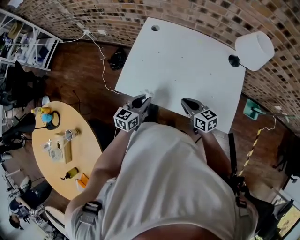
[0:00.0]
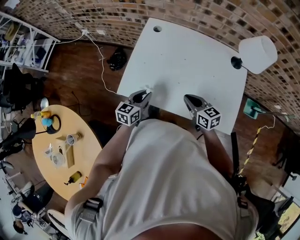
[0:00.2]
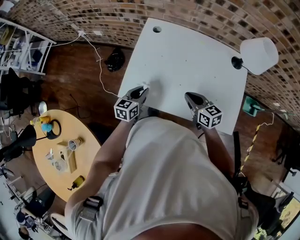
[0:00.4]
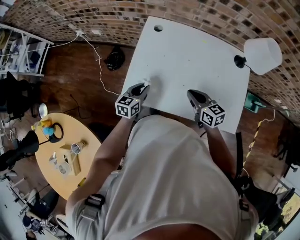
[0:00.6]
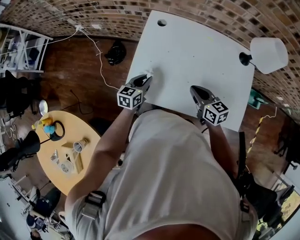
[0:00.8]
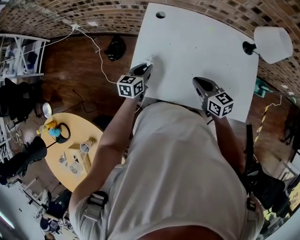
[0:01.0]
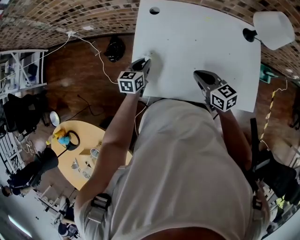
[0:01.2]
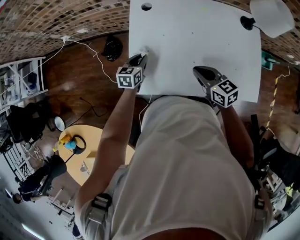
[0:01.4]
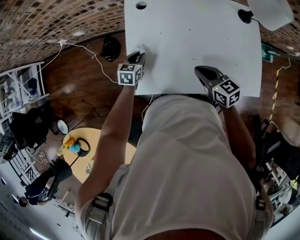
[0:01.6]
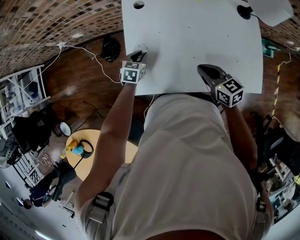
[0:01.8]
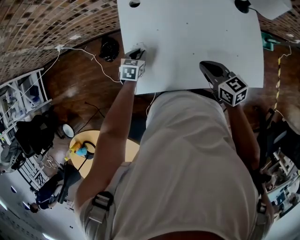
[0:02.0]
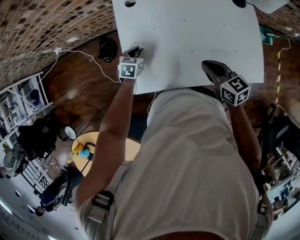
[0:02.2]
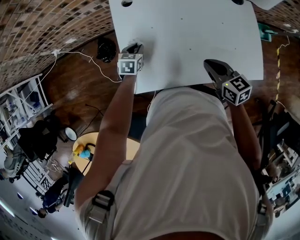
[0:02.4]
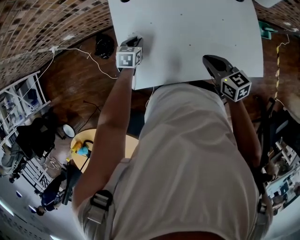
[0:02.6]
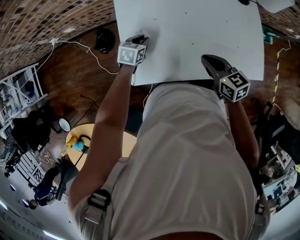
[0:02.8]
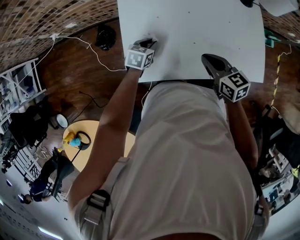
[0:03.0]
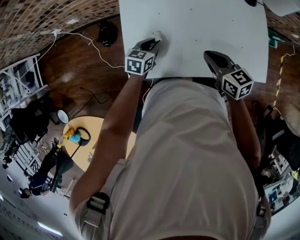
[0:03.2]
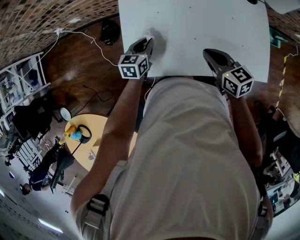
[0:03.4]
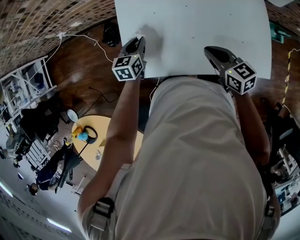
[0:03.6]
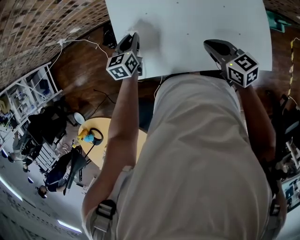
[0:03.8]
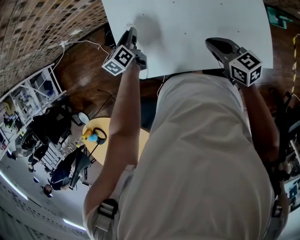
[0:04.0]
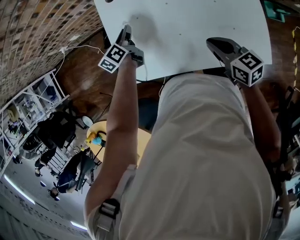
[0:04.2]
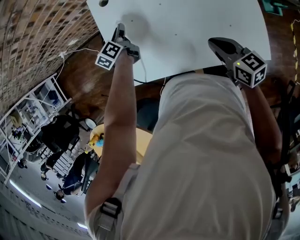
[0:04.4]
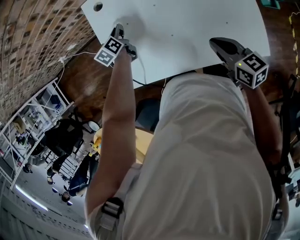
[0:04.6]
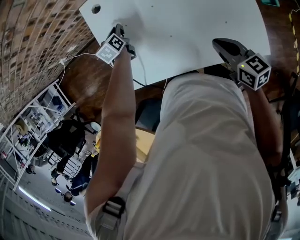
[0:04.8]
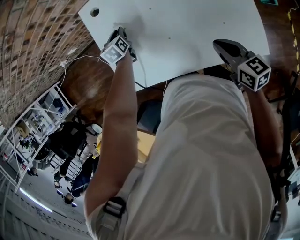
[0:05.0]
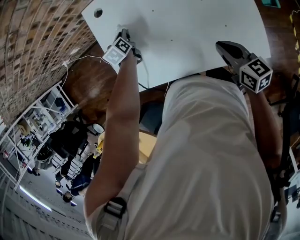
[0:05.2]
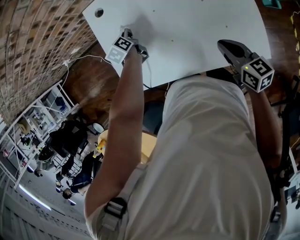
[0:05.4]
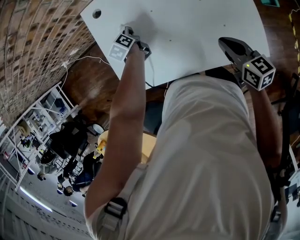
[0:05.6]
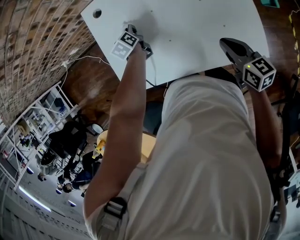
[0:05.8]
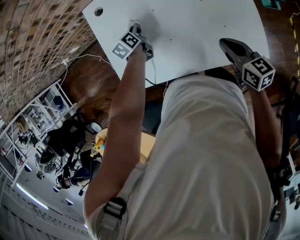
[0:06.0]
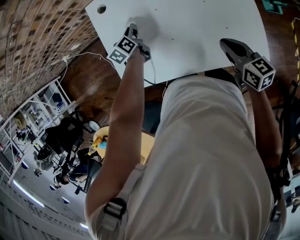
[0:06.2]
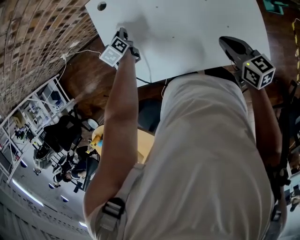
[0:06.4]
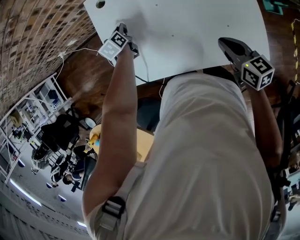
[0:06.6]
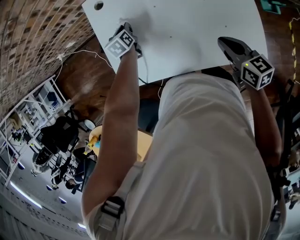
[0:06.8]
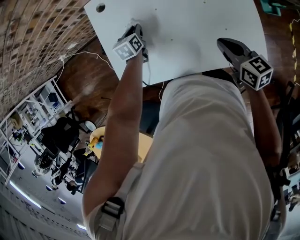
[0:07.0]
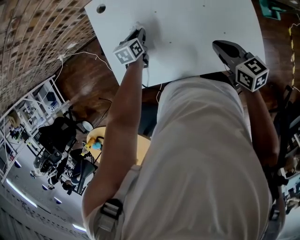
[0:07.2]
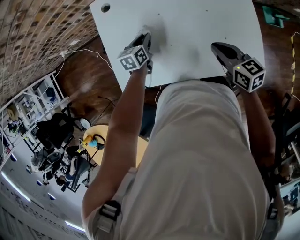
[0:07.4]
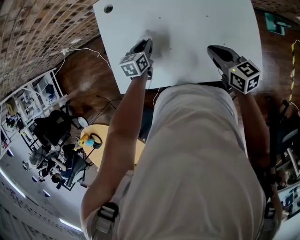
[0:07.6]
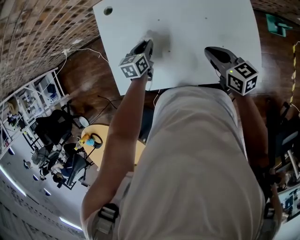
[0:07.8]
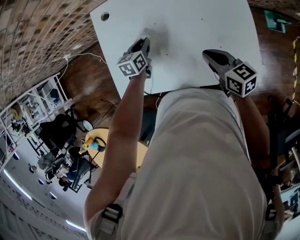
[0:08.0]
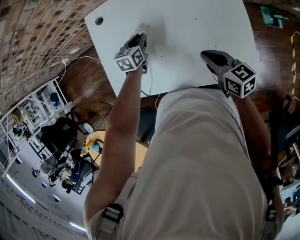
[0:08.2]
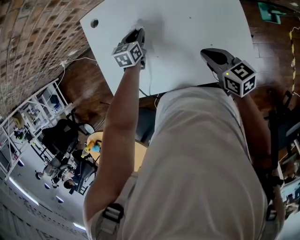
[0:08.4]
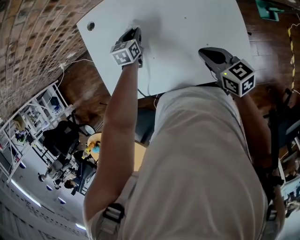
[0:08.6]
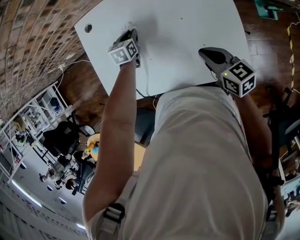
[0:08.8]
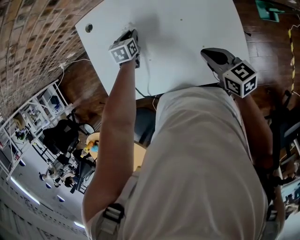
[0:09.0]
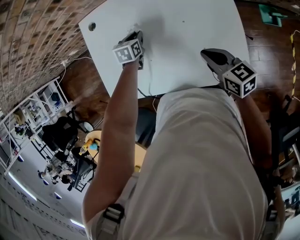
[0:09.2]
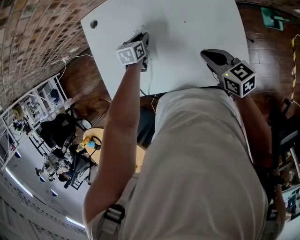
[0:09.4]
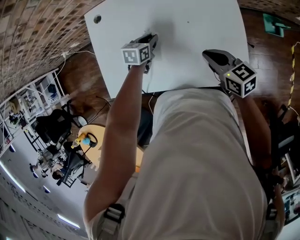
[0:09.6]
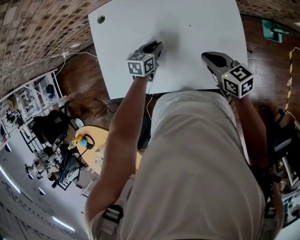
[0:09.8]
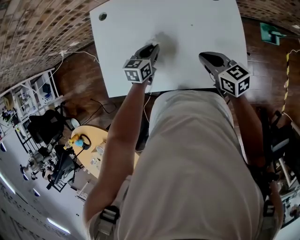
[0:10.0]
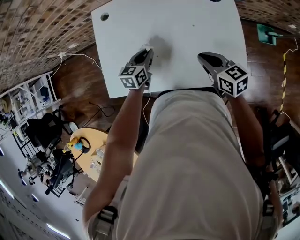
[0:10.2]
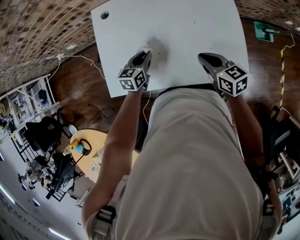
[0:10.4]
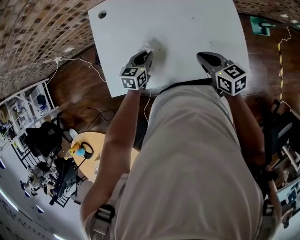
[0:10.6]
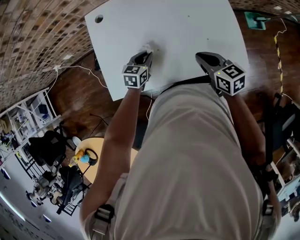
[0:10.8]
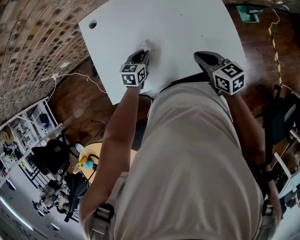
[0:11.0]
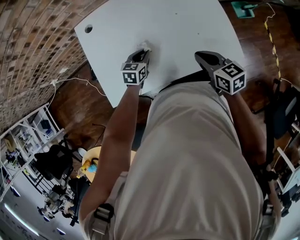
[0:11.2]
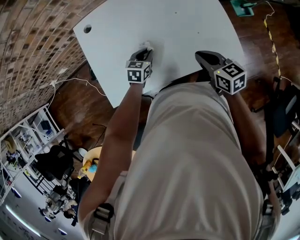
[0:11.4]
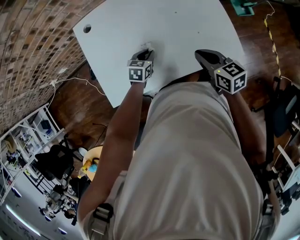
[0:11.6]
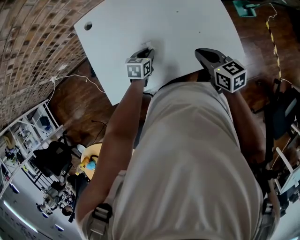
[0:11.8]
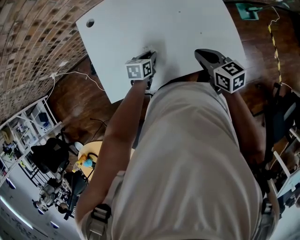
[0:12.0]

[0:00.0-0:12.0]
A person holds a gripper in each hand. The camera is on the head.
0:00.0 to 0:01.6: The left gripper moves forward and downward, some 25 cm, and changes its angle by approximately 30 degrees. Meanwhile the right gripper shifts about 10 cm forward and to the left.
0:01.6 to 0:03.0: The left gripper heads to the right, covering roughly 5 cm.
0:03.0 to 0:04.4: The right gripper is displaced to the right by about 10 cm. The left gripper heads forward and upward, covering some 15 cm, and rotates roughly 50 degrees.
0:04.4 to 0:06.0: The left gripper shifts about 10 cm to the right and downward; the right gripper goes roughly 5 cm to the right.
0:06.0 to 0:07.6: The left gripper heads backward, covering some 5 cm, and moves approximately 10 cm to the left and comes back.
0:07.6 to 0:09.0: The right gripper travels to the right by roughly 10 cm. The left gripper moves to the right and forward, approximately 10 cm.
0:09.0 to 0:10.4: The right gripper travels to the left by roughly 10 cm. Meanwhile the left gripper heads backward, covering about 15 cm, and changes its angle by some 20 degrees.
0:10.4 to 0:12.0: The left gripper travels downward by approximately 5 cm, and changes its angle by approximately 20 degrees.

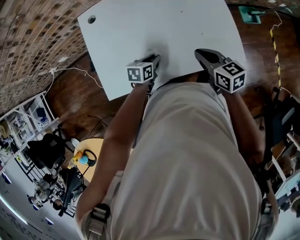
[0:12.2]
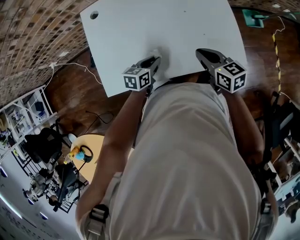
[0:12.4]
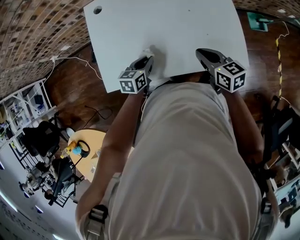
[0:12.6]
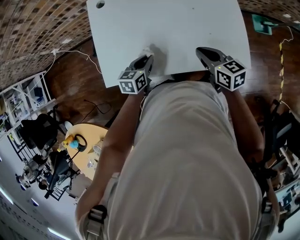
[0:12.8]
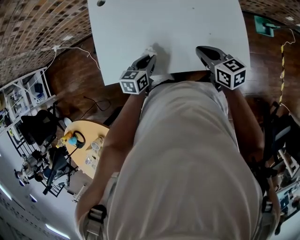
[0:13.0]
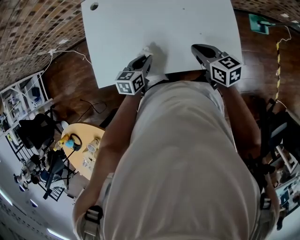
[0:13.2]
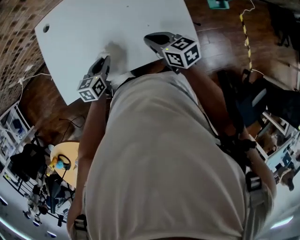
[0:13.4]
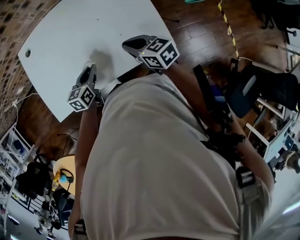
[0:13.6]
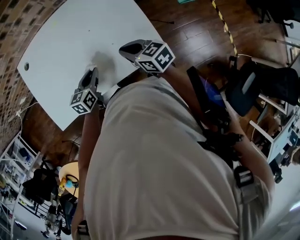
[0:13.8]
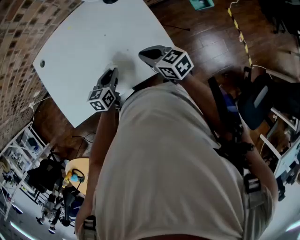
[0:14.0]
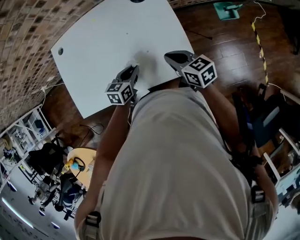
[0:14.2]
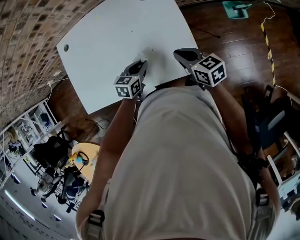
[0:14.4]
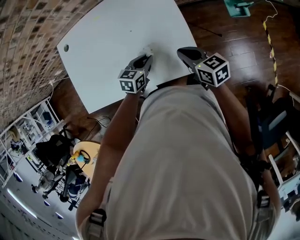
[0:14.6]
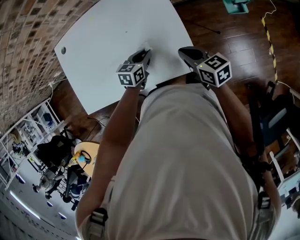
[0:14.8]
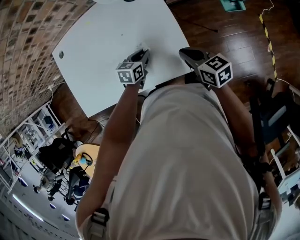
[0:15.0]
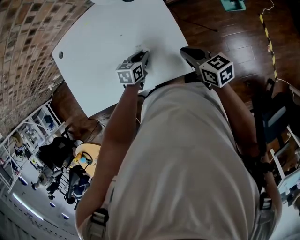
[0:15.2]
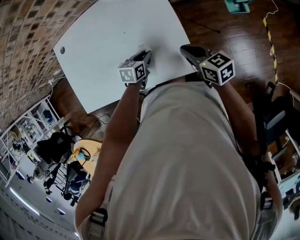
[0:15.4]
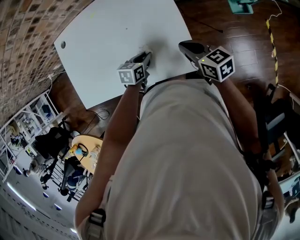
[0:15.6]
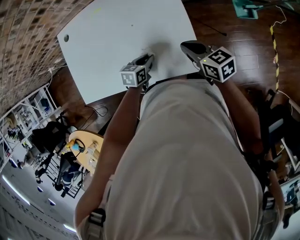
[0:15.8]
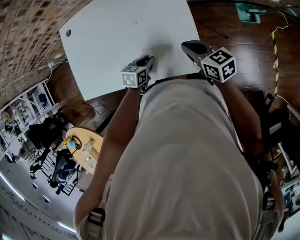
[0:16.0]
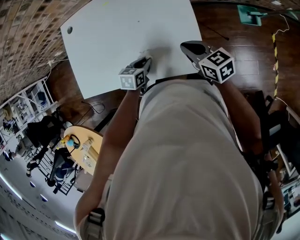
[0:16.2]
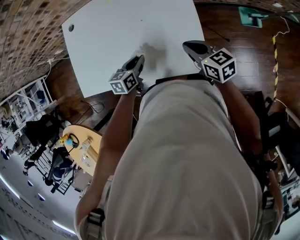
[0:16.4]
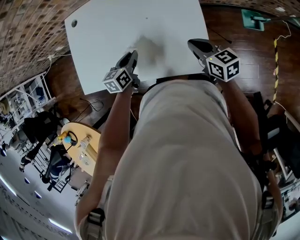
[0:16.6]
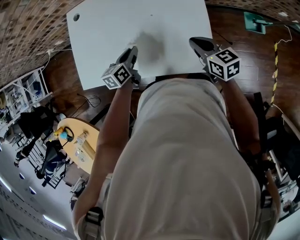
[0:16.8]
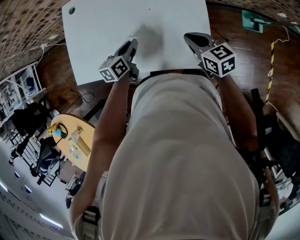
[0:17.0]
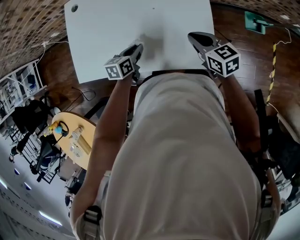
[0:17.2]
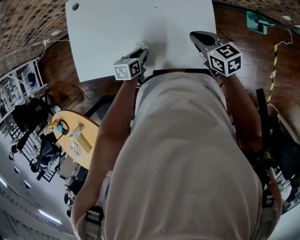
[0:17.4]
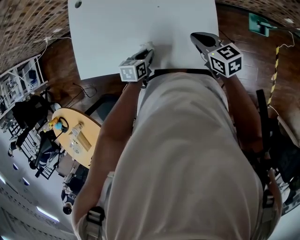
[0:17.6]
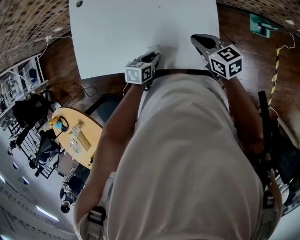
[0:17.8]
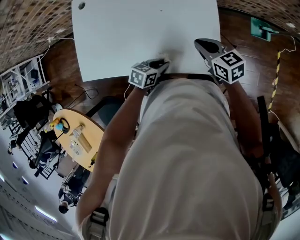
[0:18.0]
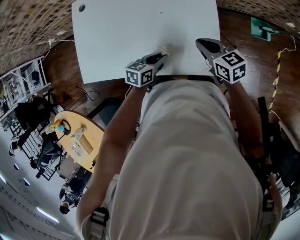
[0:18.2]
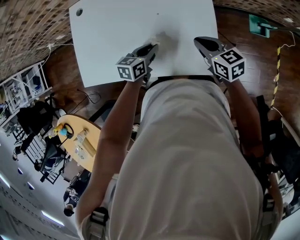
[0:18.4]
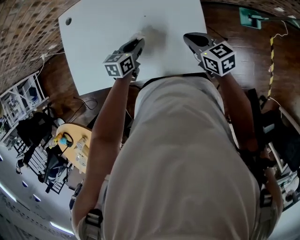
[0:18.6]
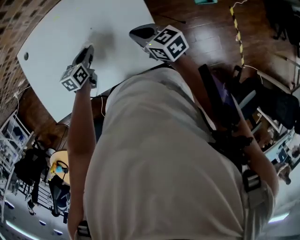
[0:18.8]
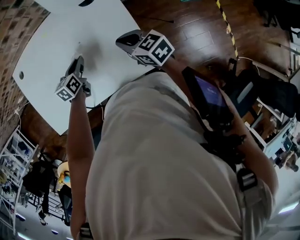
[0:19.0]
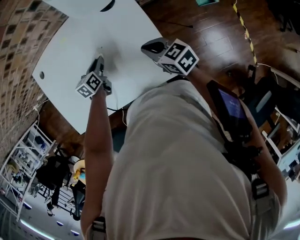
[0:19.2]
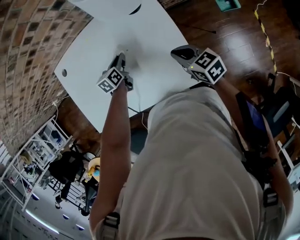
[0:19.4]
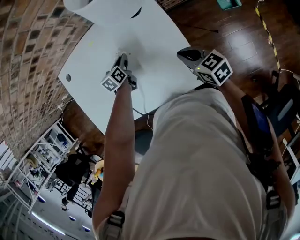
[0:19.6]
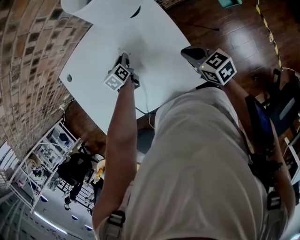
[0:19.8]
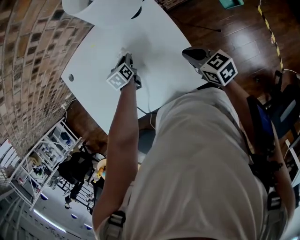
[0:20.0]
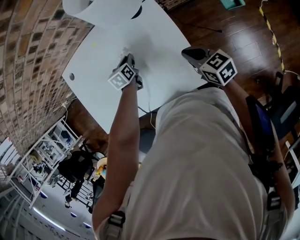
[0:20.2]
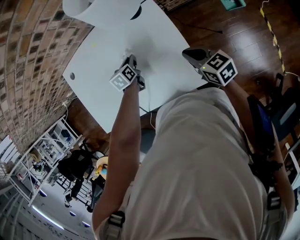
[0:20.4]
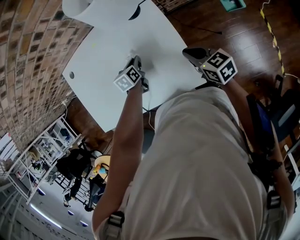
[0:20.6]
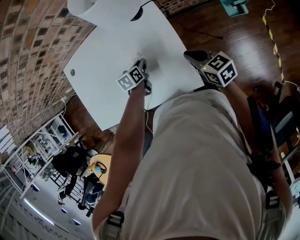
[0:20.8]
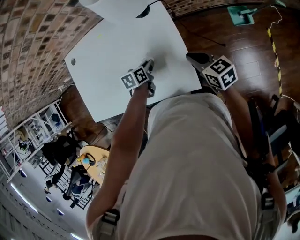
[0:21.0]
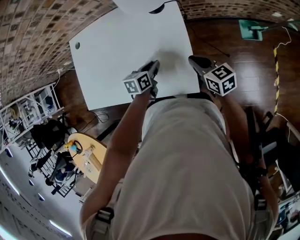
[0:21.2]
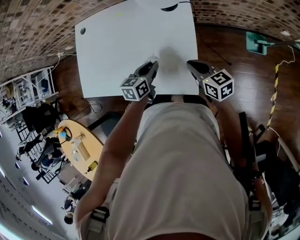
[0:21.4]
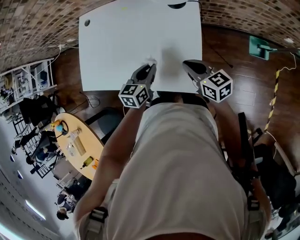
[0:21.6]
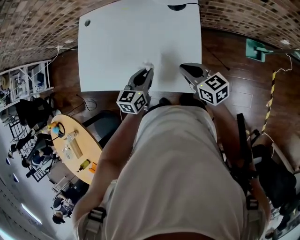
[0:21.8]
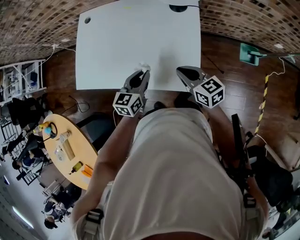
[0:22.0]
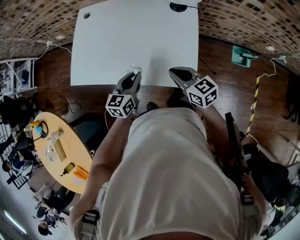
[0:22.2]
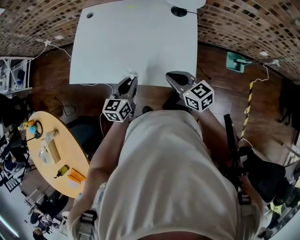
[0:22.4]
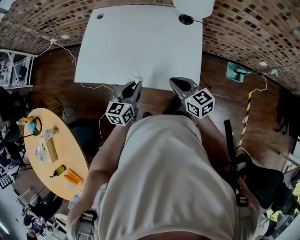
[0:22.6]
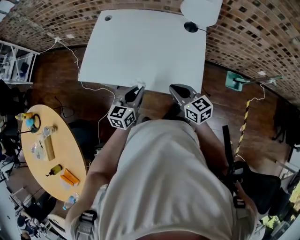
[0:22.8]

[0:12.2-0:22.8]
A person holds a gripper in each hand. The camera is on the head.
0:12.2 to 0:13.8: The right gripper heads to the right, covering roughly 10 cm. The left gripper heads to the right and upward, covering about 15 cm.
0:13.8 to 0:15.2: Both grippers travel together to the right, roughly 15 cm.
0:15.2 to 0:16.8: The right gripper moves to the left, approximately 10 cm. The left gripper shifts roughly 15 cm to the left, and swivels approximately 40 degrees.
0:16.8 to 0:18.2: The left gripper moves to the right and backward, approximately 10 cm, and changes its angle by approximately 30 degrees.
0:18.2 to 0:19.8: The left gripper moves forward, approximately 25 cm, and changes its angle by roughly 20 degrees. The right gripper goes some 5 cm to the right.
0:19.8 to 0:21.2: The left gripper shifts roughly 20 cm backward and to the right.
0:21.2 to 0:22.8: The left gripper shifts approximately 30 cm to the left, backward and upward, and turns by about 30 degrees; the right gripper is displaced to the left and backward by roughly 25 cm.

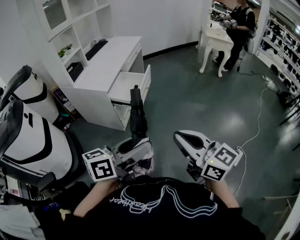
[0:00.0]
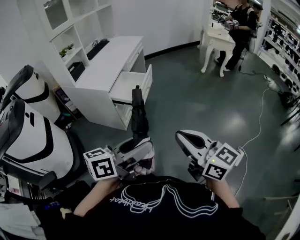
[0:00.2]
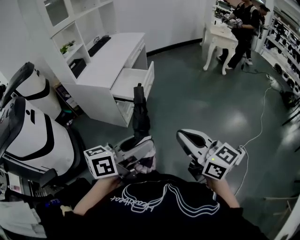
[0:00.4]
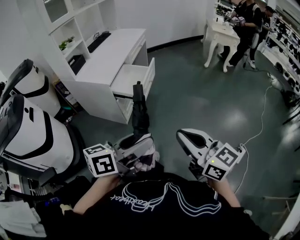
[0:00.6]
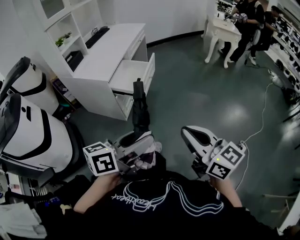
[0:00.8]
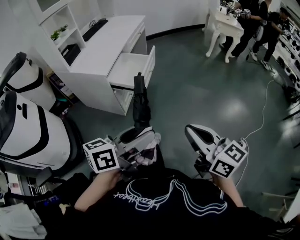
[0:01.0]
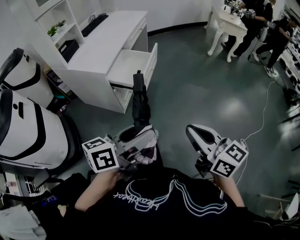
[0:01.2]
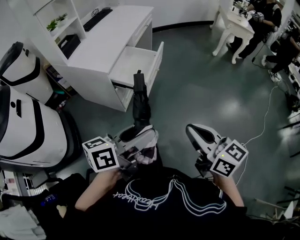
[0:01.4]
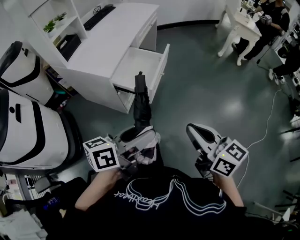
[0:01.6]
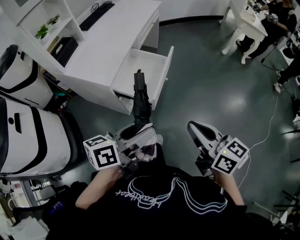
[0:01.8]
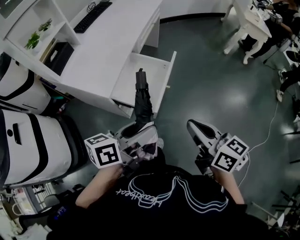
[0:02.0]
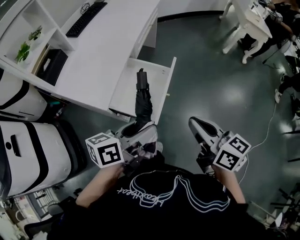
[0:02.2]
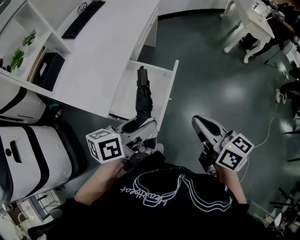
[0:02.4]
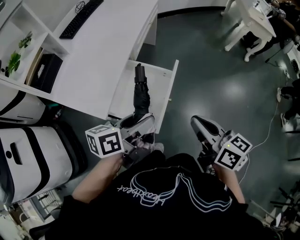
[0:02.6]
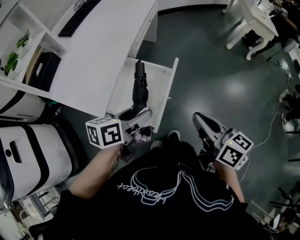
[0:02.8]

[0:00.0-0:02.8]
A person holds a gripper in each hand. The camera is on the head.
0:00.0 to 0:01.4: The two grippers go roughly 15 cm forward and downward.
0:01.4 to 0:02.8: The two grippers go about 35 cm forward.
